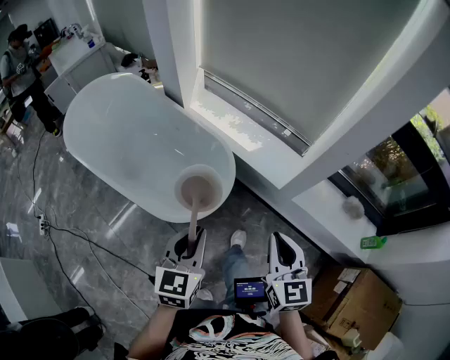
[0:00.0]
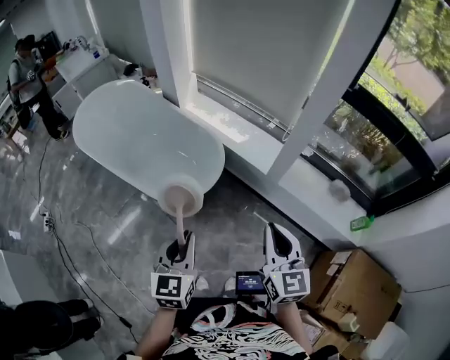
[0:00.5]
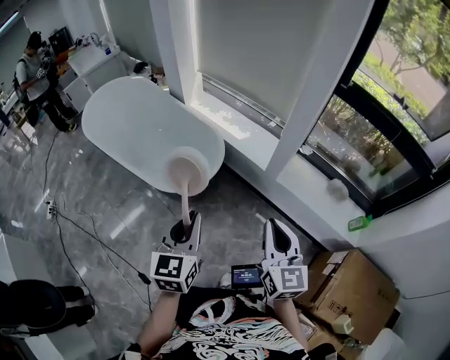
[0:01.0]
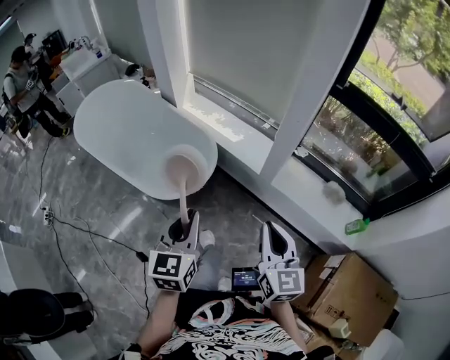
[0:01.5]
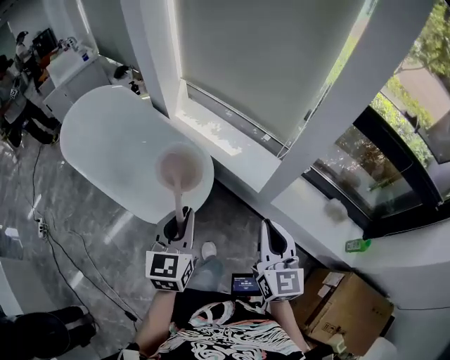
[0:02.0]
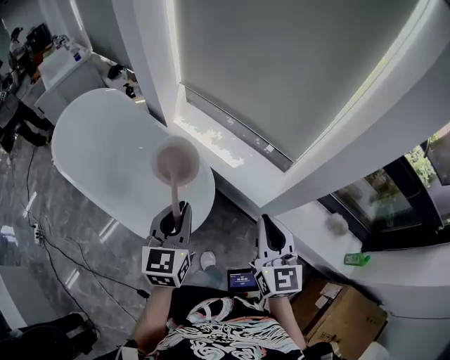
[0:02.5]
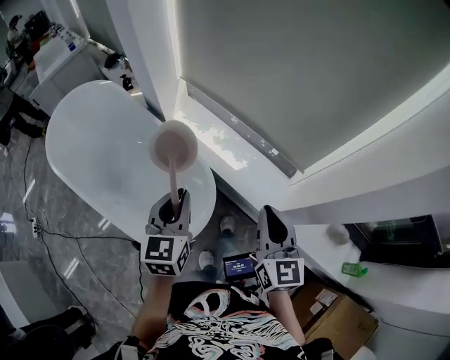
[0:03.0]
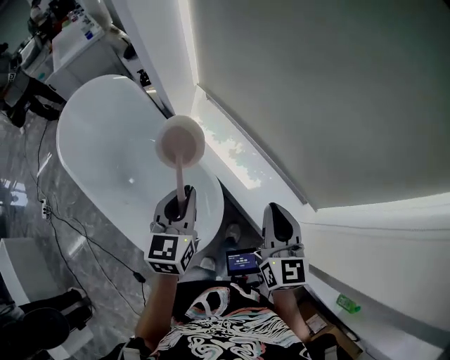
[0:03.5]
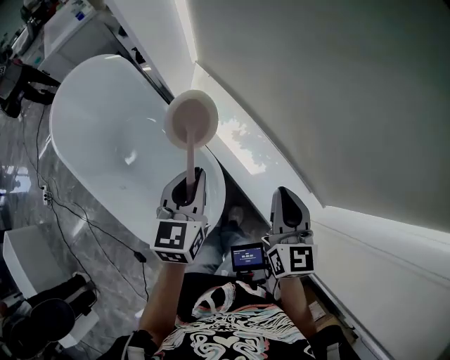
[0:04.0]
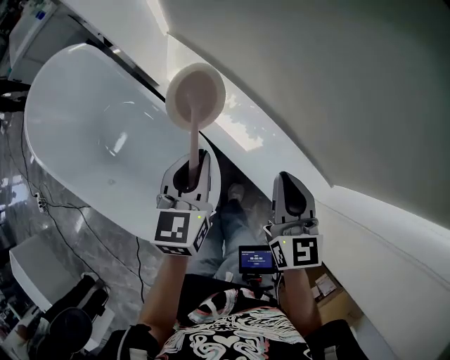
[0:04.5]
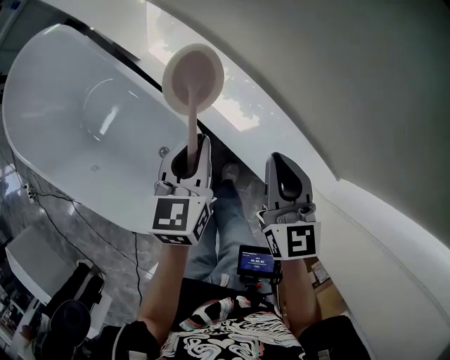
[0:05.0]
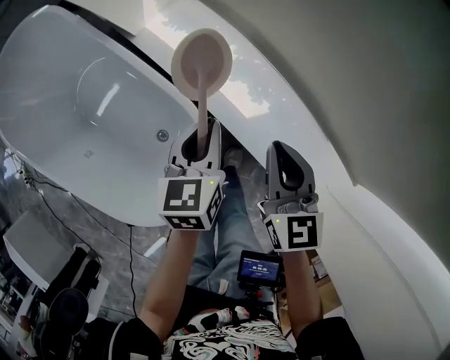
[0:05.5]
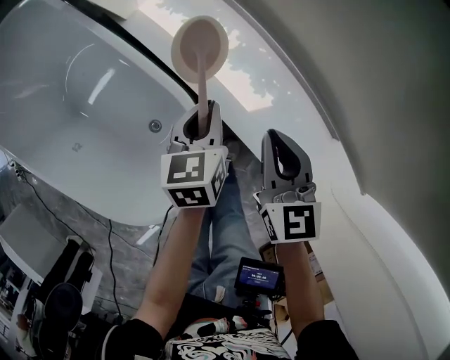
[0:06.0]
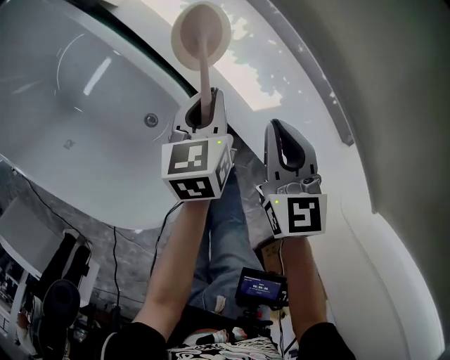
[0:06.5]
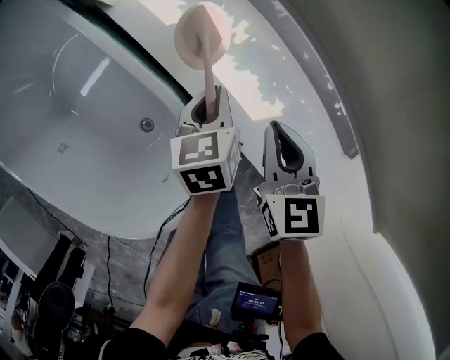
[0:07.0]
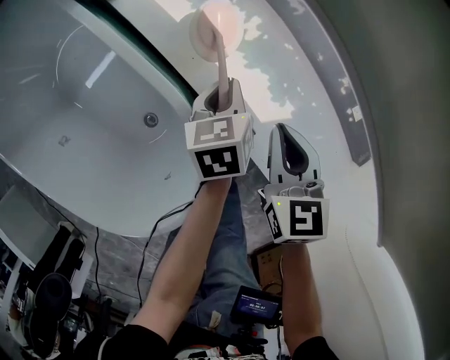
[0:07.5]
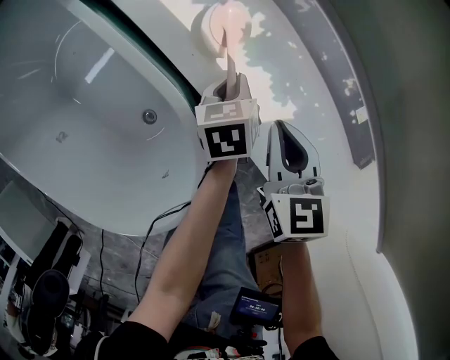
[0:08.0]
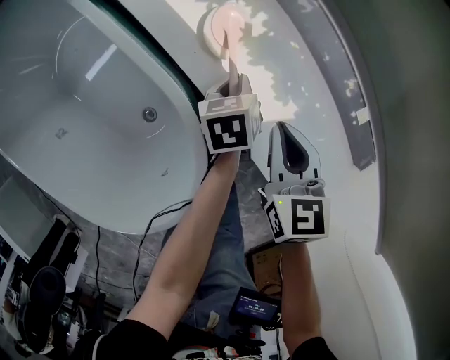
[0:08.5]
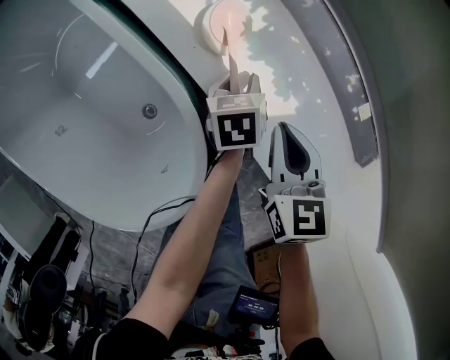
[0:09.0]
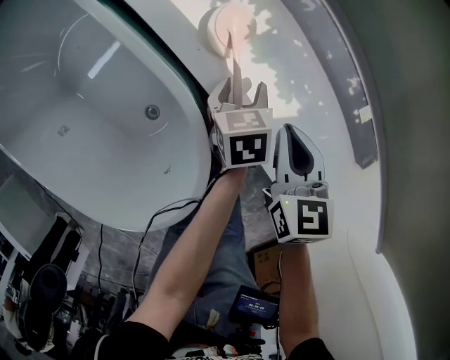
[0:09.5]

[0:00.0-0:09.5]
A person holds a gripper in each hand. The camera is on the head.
0:00.0 to 0:02.0: The two grippers go approximately 10 cm to the right and upward. The left gripper reaches about 20 cm backward, then returns. Meanwhile the right gripper travels backward and back again, some 20 cm each way.
0:02.0 to 0:04.0: Both grippers are carried forward, roughly 50 cm.
0:04.0 to 0:05.5: The two grippers go roughly 25 cm downward.
0:05.5 to 0:07.5: Both grippers move downward, approximately 20 cm.
0:07.5 to 0:09.5: The left gripper ends up roughly 5 cm from where it was, and opens its fingers.

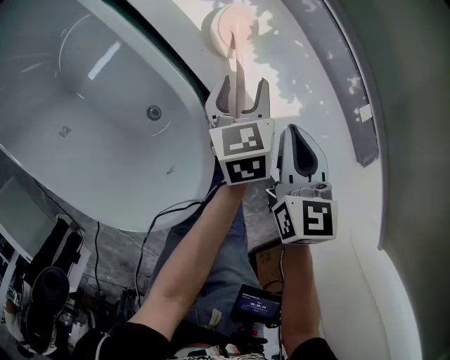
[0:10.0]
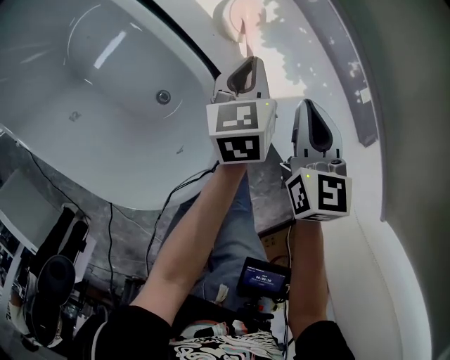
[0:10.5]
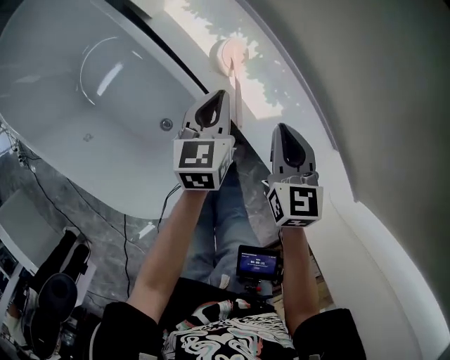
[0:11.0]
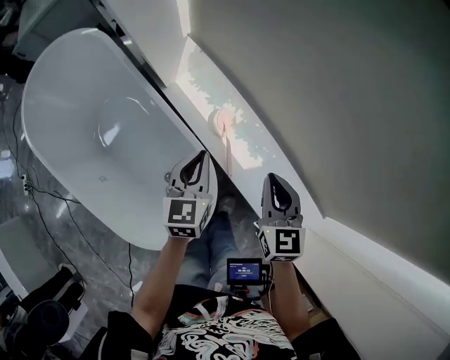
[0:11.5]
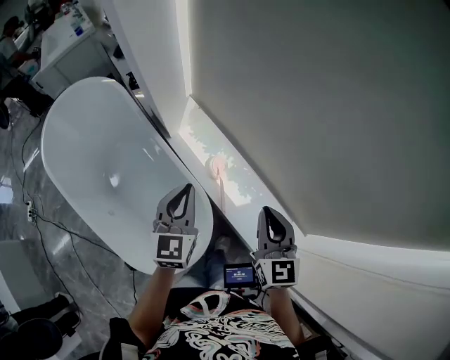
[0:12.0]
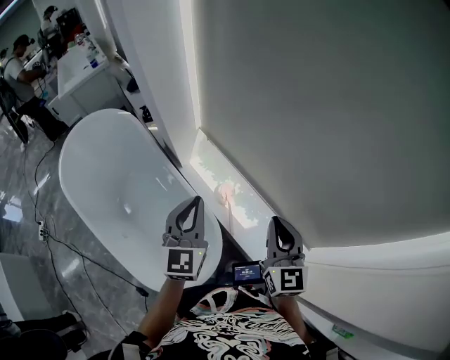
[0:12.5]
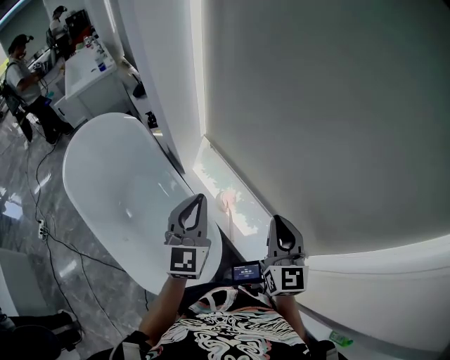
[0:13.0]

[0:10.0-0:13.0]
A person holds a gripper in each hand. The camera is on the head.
0:10.0 to 0:11.5: Both grippers travel together upward, approximately 30 cm. The left gripper changes its angle by about 30 degrees, and closes.
0:11.5 to 0:13.0: Both grippers move upward, some 25 cm. The right gripper swivels some 20 degrees; the left gripper turns by some 30 degrees.

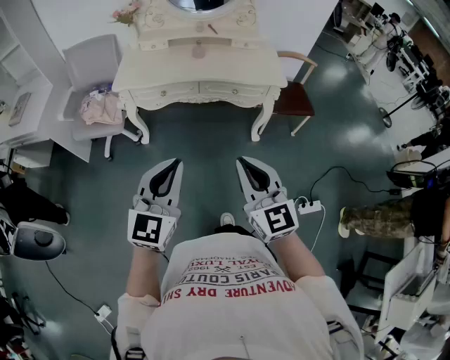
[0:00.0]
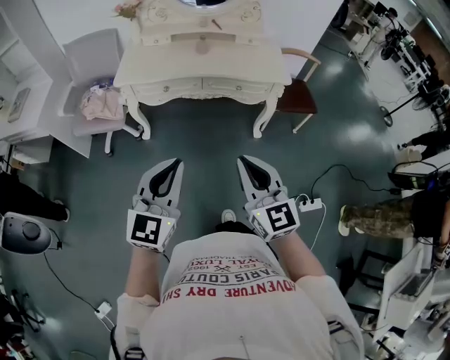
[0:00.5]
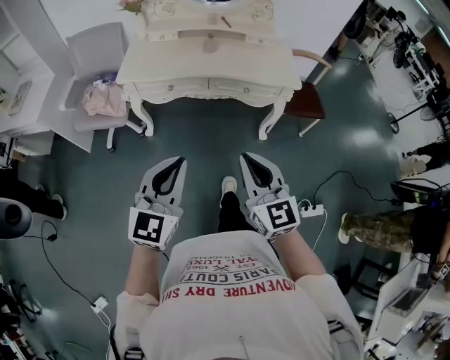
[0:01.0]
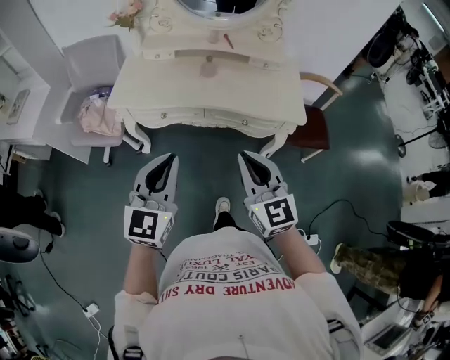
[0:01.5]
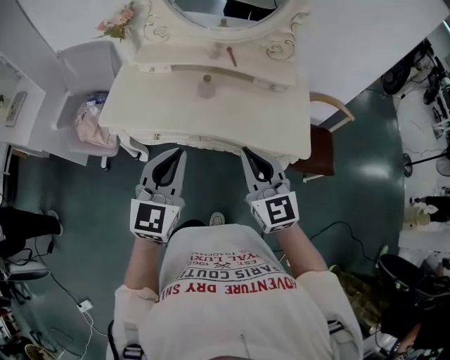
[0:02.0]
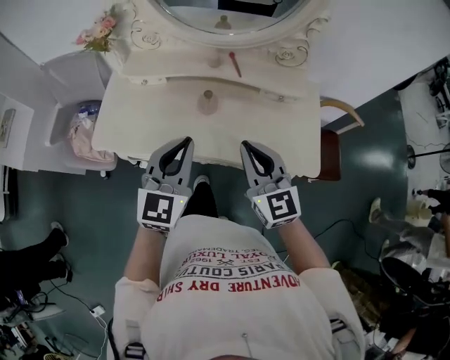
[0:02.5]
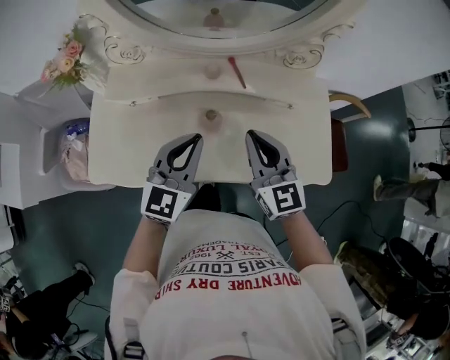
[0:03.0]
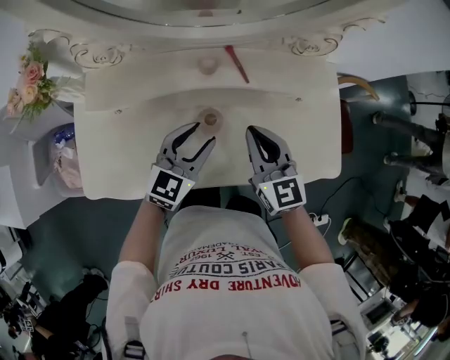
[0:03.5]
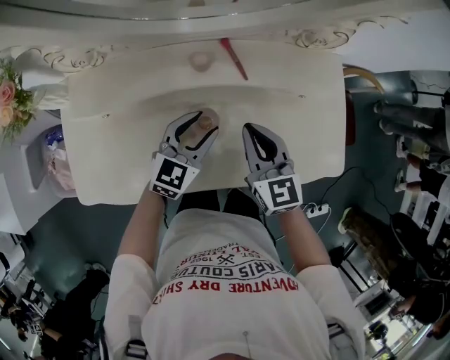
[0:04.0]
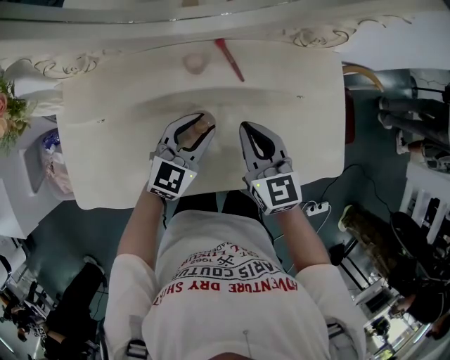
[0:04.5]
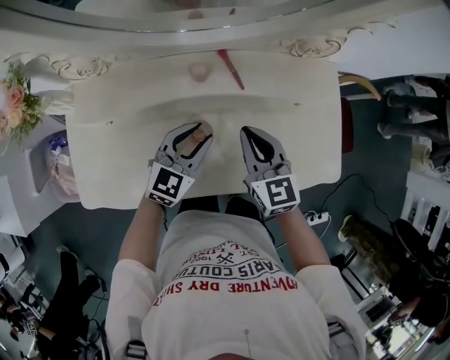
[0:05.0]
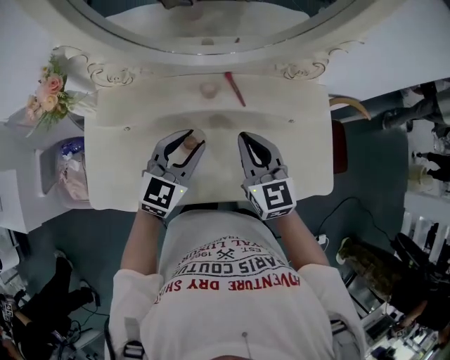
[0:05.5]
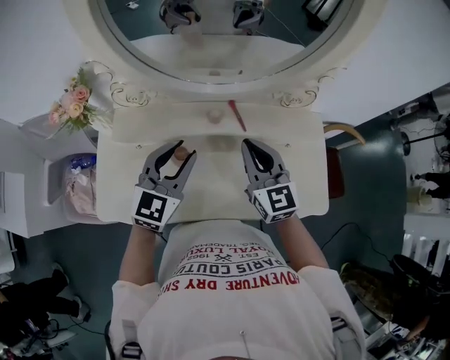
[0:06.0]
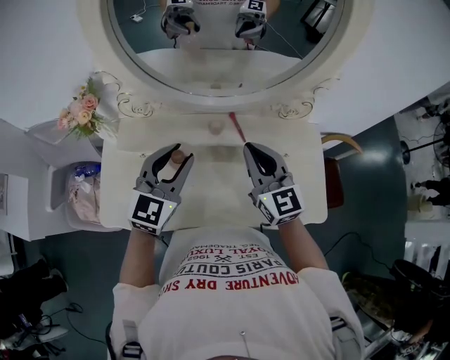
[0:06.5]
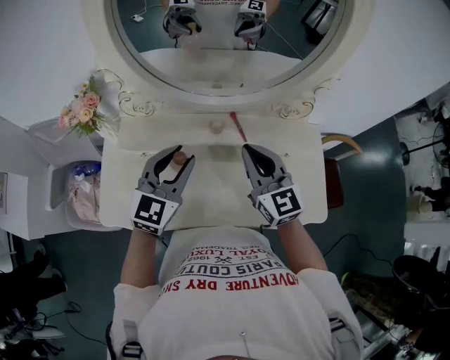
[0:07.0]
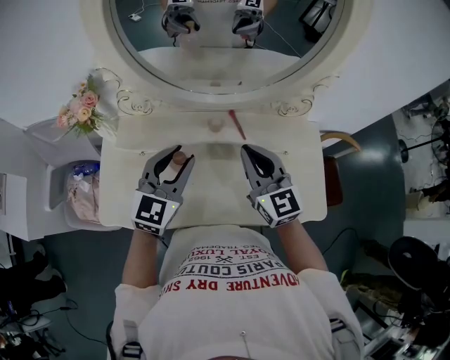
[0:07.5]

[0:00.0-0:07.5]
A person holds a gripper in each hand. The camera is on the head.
0:00.0 to 0:02.0: The pair of grippers is taken forward, approximately 40 cm.
0:02.0 to 0:04.0: The two grippers go about 40 cm forward and downward. The left gripper swivels approximately 40 degrees, and opens its fingers. Meanwhile the right gripper turns by roughly 30 degrees.
0:04.0 to 0:05.5: The two grippers go about 10 cm upward.
0:05.5 to 0:07.5: The two grippers go some 10 cm upward.

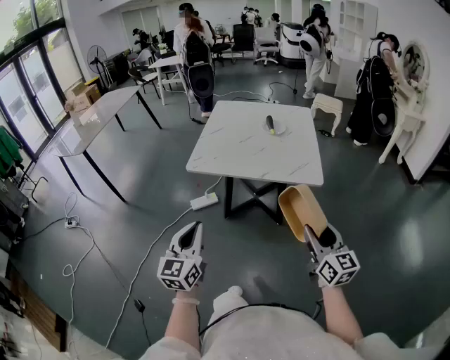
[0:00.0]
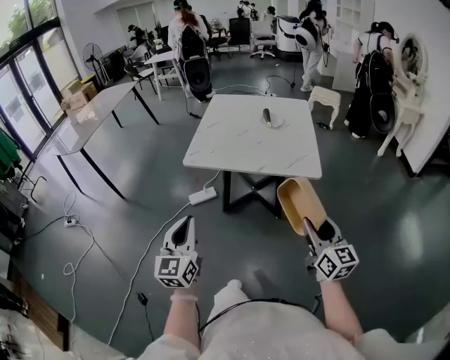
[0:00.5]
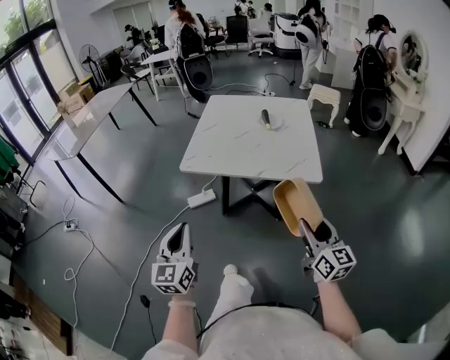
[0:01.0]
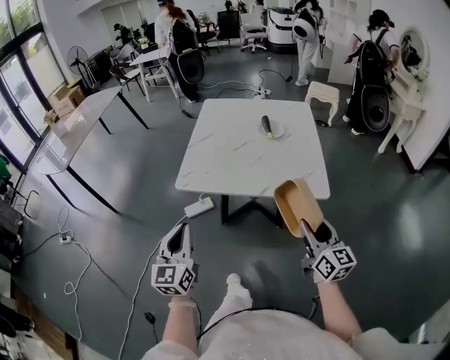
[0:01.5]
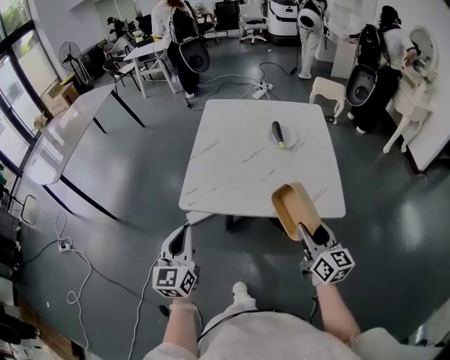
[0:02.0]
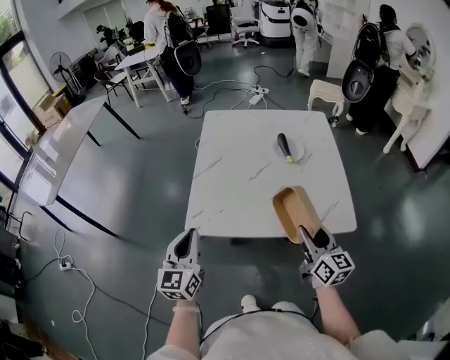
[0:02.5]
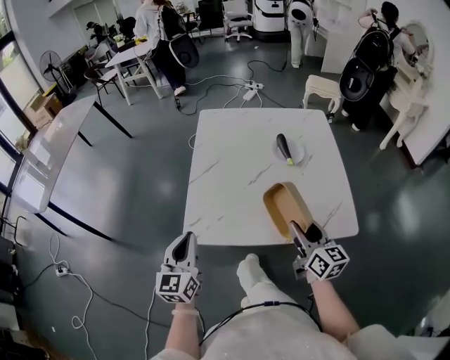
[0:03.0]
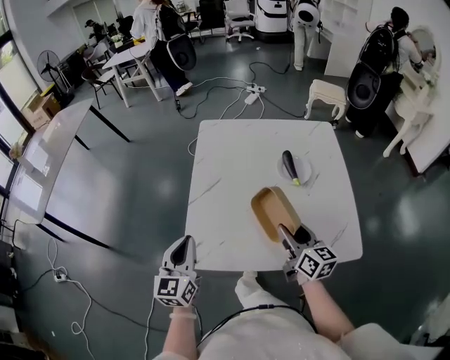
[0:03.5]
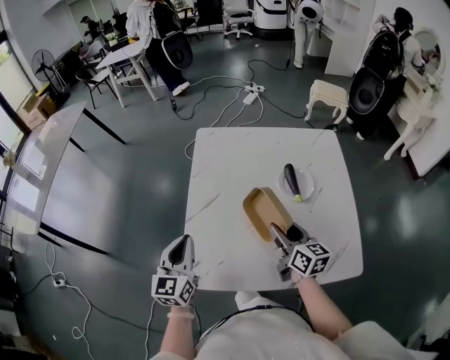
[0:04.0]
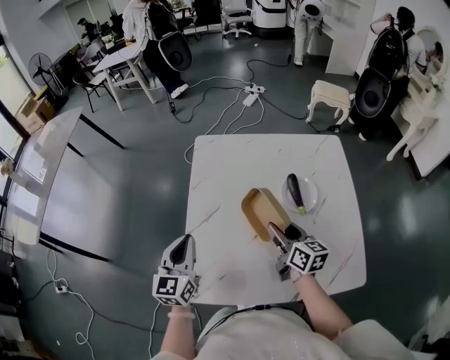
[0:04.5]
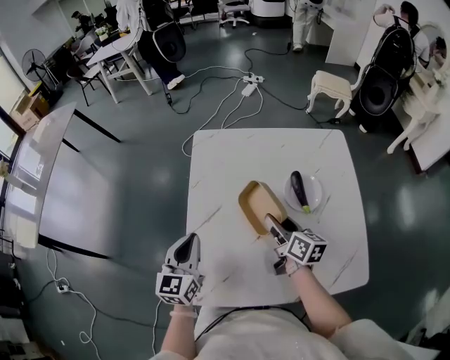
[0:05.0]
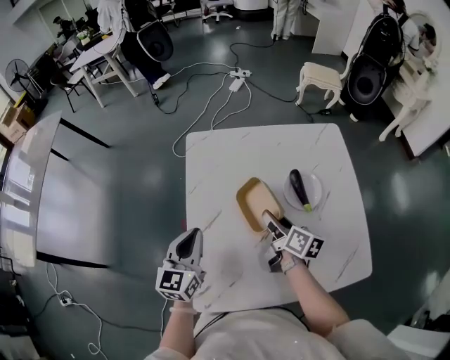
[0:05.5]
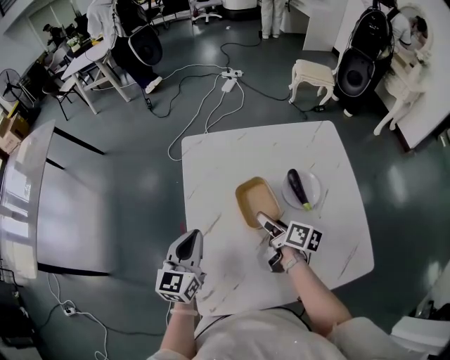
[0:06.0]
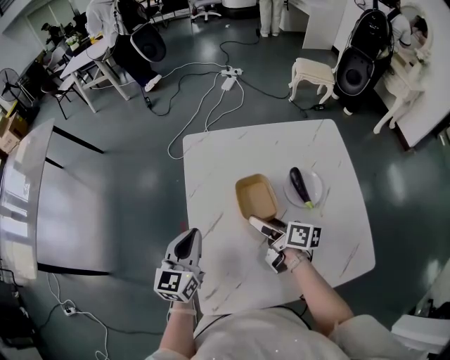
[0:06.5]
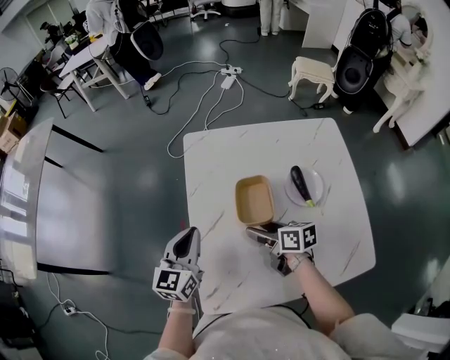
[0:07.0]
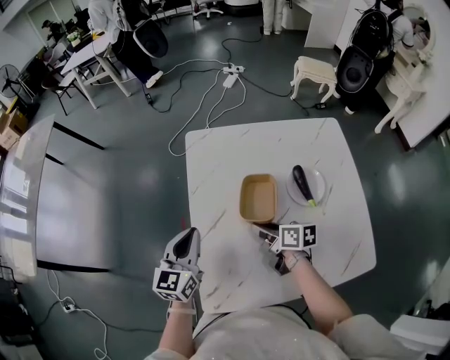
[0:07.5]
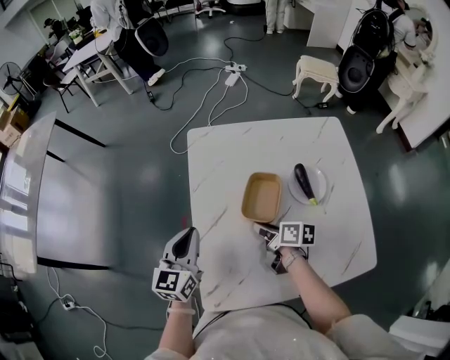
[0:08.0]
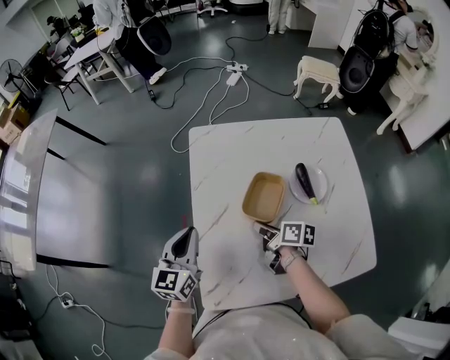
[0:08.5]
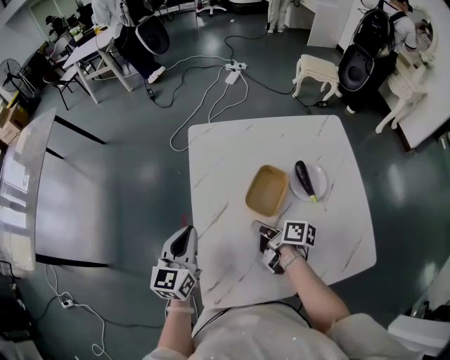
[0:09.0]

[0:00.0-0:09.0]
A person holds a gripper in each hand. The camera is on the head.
0:00.0 to 0:02.0: The grippers both shift forward by about 25 cm.
0:02.0 to 0:04.5: The two grippers go roughly 35 cm forward.
0:04.5 to 0:07.0: The left gripper heads forward, covering approximately 5 cm. Meanwhile the right gripper moves to the left and downward, about 10 cm, and rotates roughly 30 degrees.
0:07.0 to 0:09.0: The right gripper swivels about 30 degrees, and closes its fingers.
